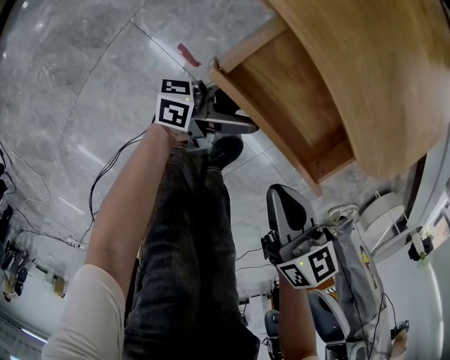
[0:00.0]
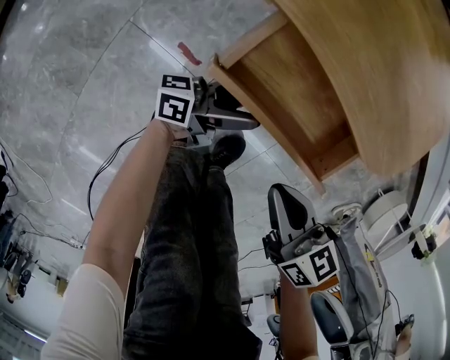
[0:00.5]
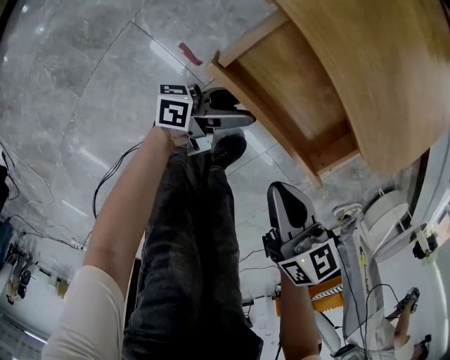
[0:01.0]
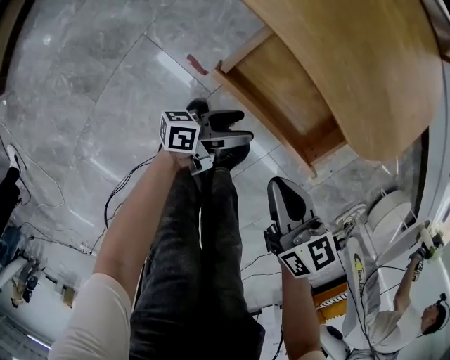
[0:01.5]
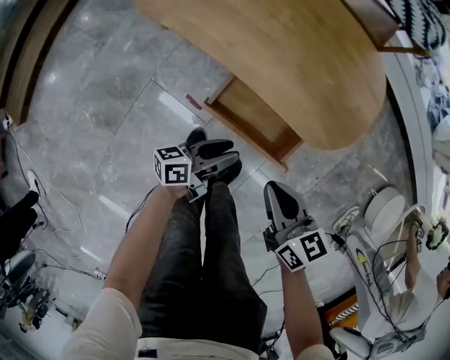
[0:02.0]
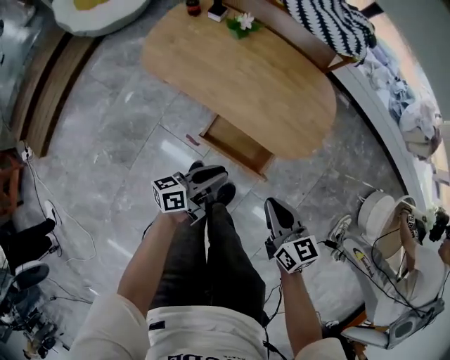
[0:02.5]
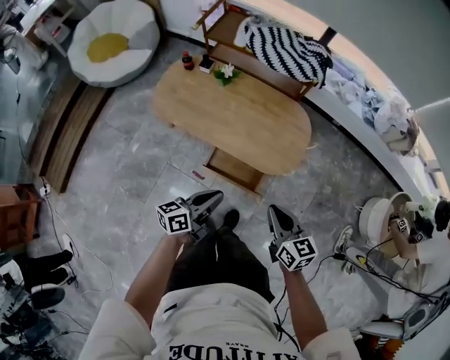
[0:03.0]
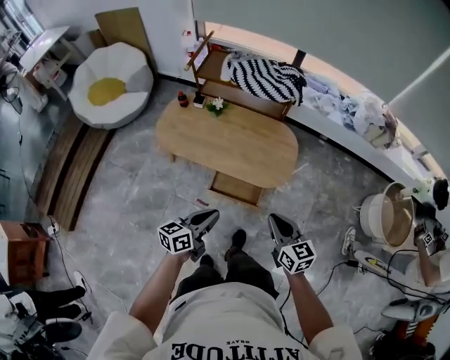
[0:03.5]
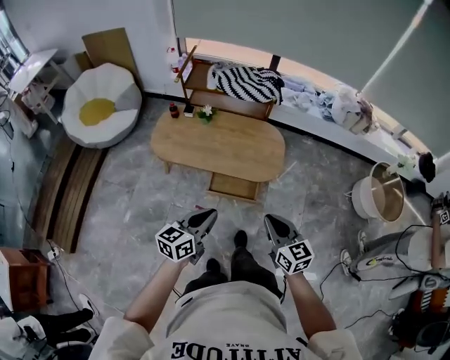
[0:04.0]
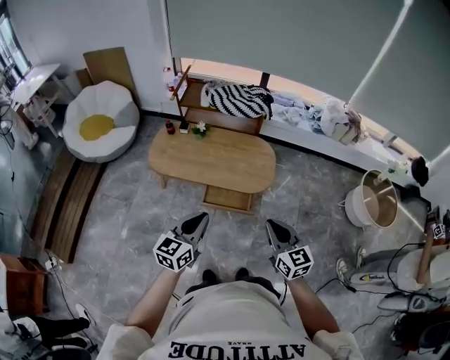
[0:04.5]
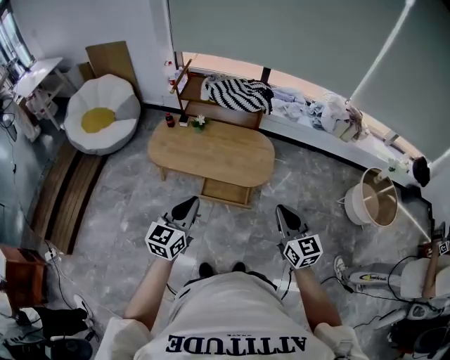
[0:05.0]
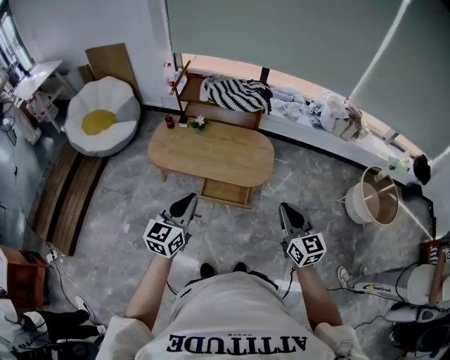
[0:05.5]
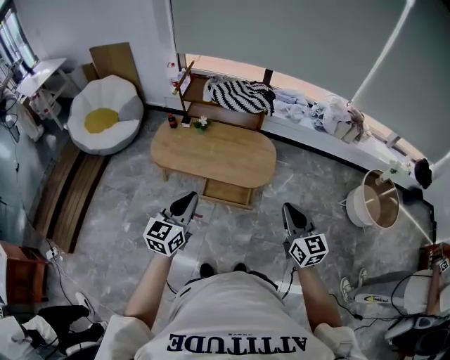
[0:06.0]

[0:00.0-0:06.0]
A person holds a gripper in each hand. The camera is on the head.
0:00.0 to 0:02.0: Both grippers travel together upward, about 20 cm. The left gripper turns by approximately 20 degrees, and closes up.
0:02.0 to 0:04.0: The right gripper moves upward and backward, roughly 40 cm, and changes its angle by some 30 degrees; the left gripper heads upward, covering roughly 50 cm, turns by approximately 40 degrees, and closes its fingers.
0:04.0 to 0:06.0: The right gripper shifts approximately 15 cm to the right and upward; the left gripper travels upward by about 10 cm, and rotates about 30 degrees.

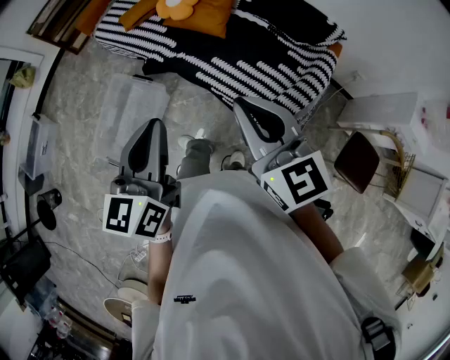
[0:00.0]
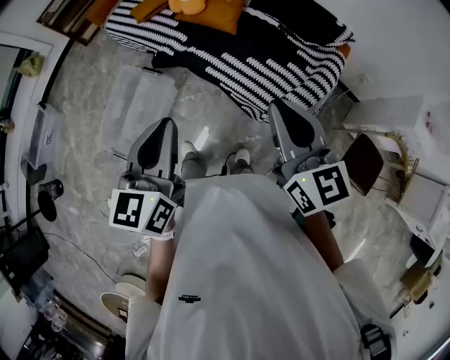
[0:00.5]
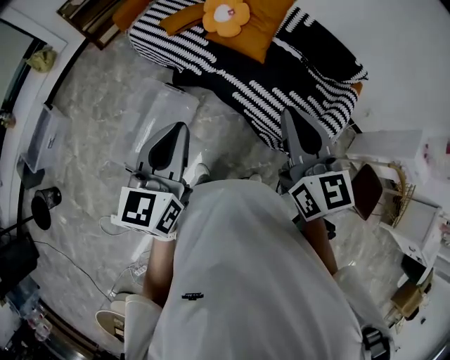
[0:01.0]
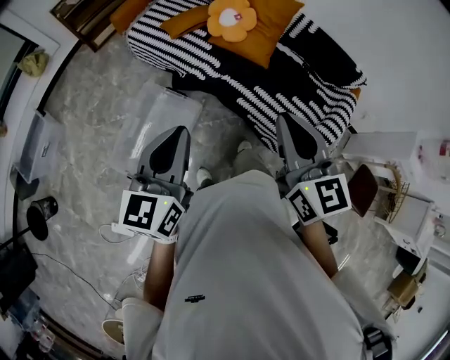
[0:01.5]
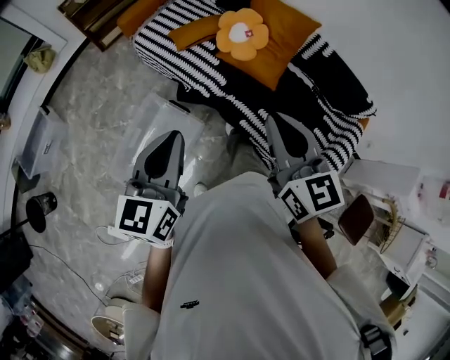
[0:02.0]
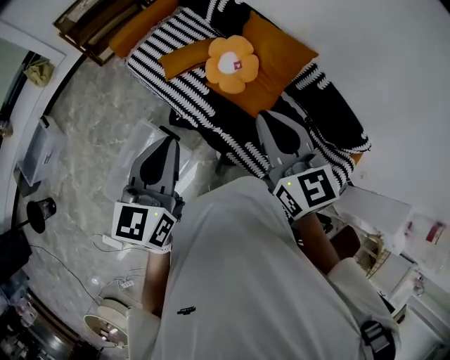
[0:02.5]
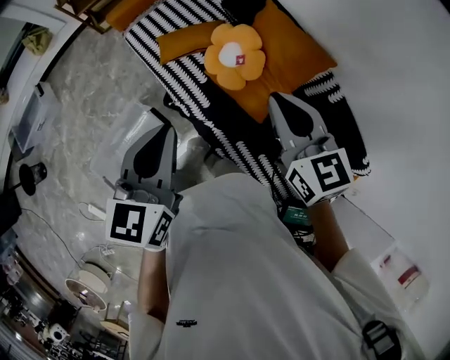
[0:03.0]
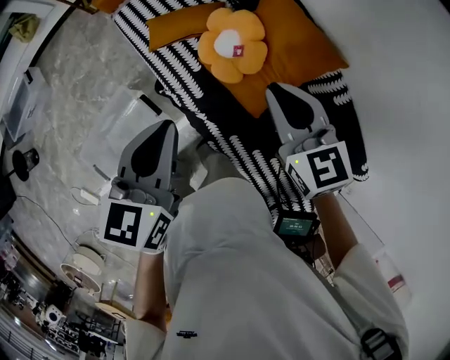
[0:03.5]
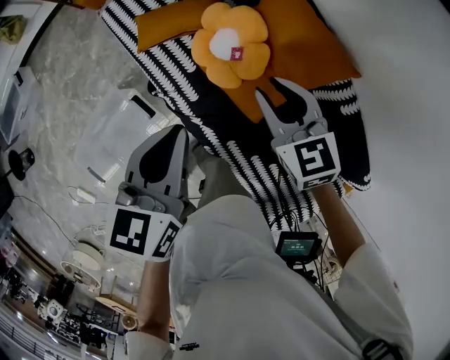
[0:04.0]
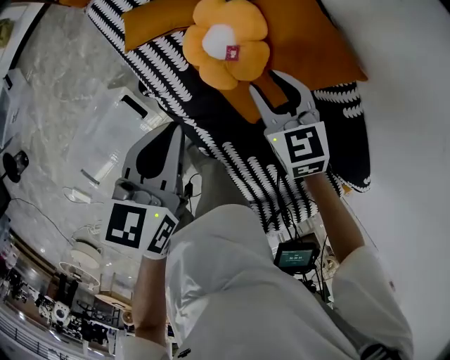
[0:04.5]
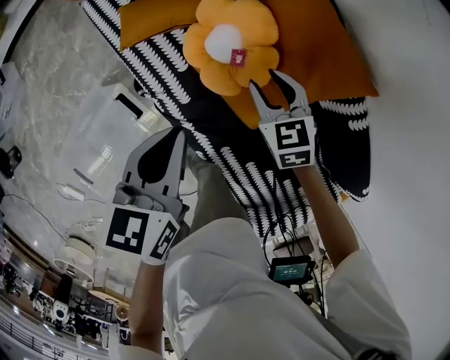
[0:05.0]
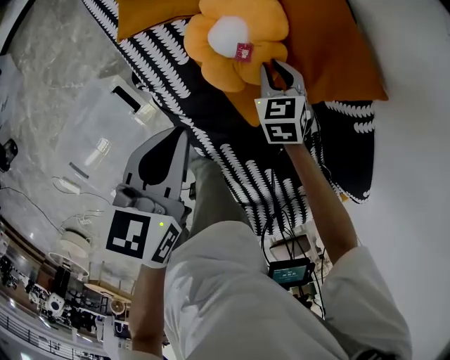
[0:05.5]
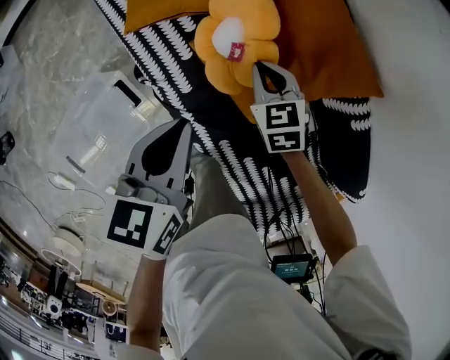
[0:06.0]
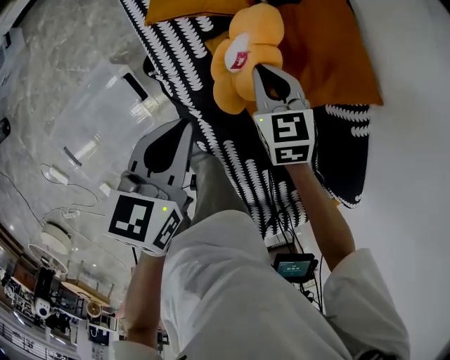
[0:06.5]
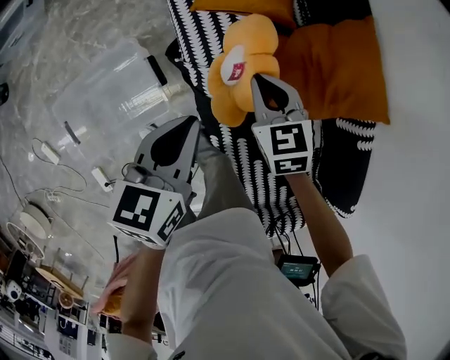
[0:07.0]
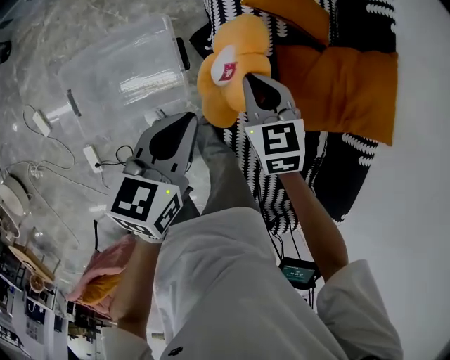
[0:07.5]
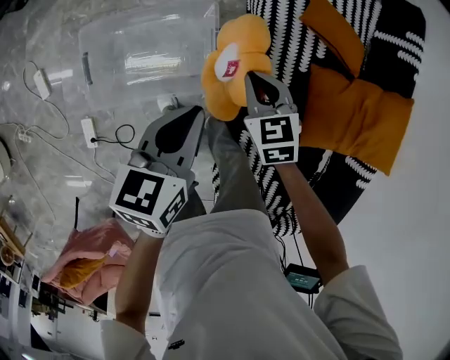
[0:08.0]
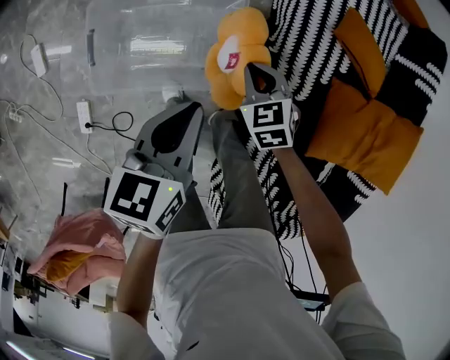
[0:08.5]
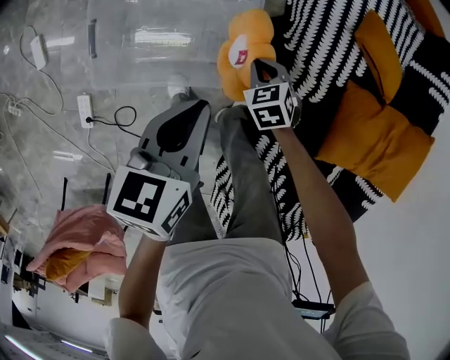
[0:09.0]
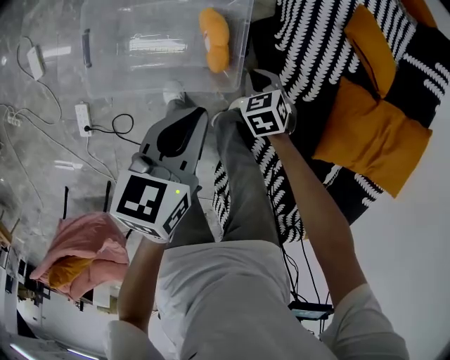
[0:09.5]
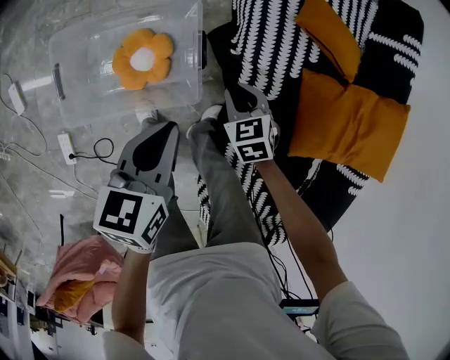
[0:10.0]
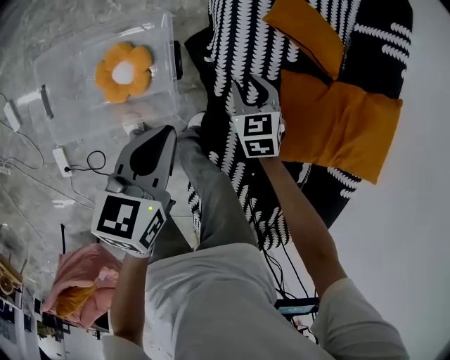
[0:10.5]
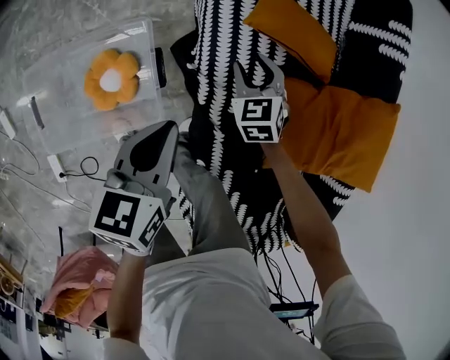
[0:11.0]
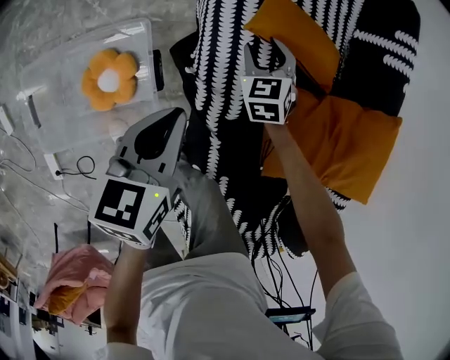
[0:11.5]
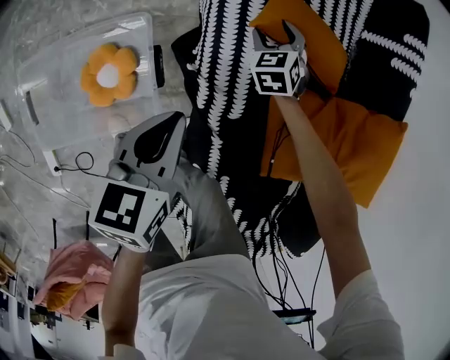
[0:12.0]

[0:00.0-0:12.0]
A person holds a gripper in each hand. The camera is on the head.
0:00.0 to 0:02.0: The left gripper goes about 30 cm to the left and forward. The right gripper moves forward and to the left, about 30 cm.
0:02.0 to 0:04.0: The two grippers travel together, forward and to the right, some 50 cm. The left gripper goes roughly 15 cm downward, and rotates approximately 20 degrees. The right gripper travels downward by about 25 cm, turns by roughly 30 degrees, and opens its fingers.
0:04.0 to 0:06.0: The right gripper heads downward, covering roughly 20 cm, and closes up, while the left gripper moves downward, about 10 cm.
0:06.0 to 0:08.0: The pair of grippers is taken roughly 50 cm. The left gripper turns by roughly 30 degrees, while the right gripper turns by roughly 40 degrees.
0:08.0 to 0:10.0: The right gripper moves downward, some 15 cm, while the left gripper goes some 10 cm downward.
0:10.0 to 0:12.0: The left gripper is displaced forward and to the right by approximately 20 cm. Meanwhile the right gripper is displaced forward and to the right by approximately 35 cm, turns by roughly 20 degrees, and opens its fingers.

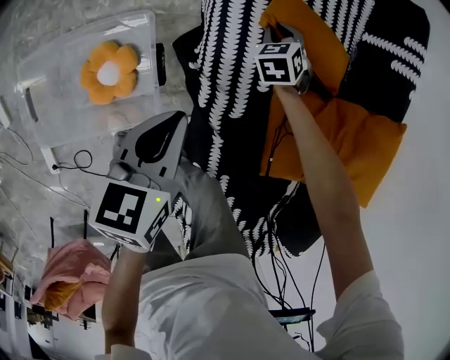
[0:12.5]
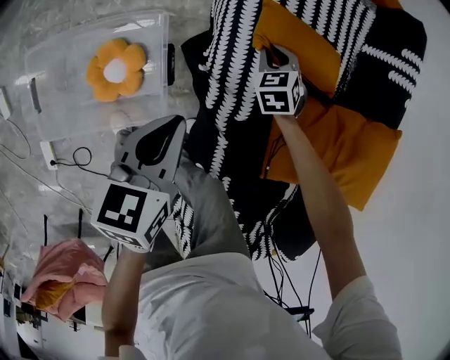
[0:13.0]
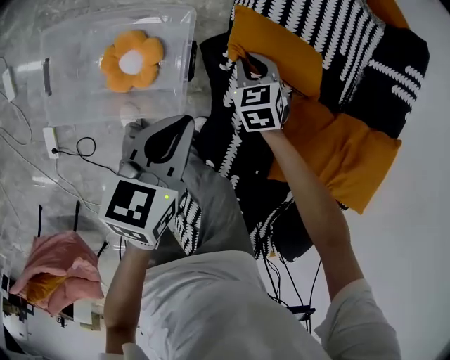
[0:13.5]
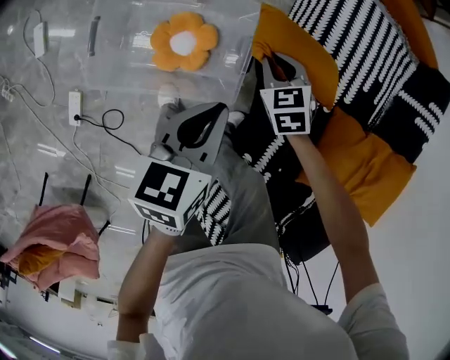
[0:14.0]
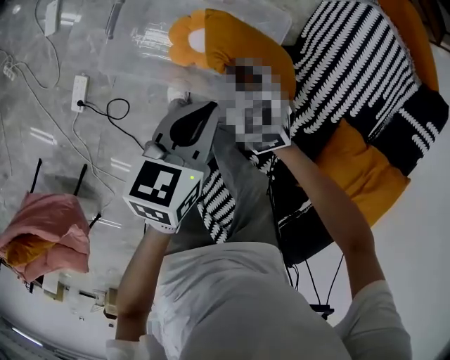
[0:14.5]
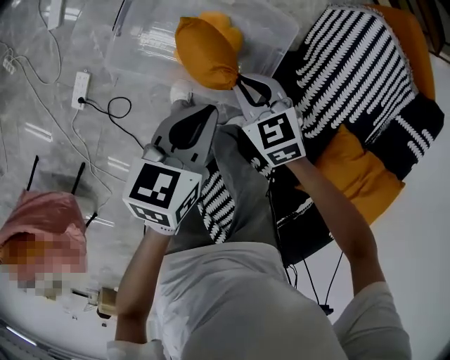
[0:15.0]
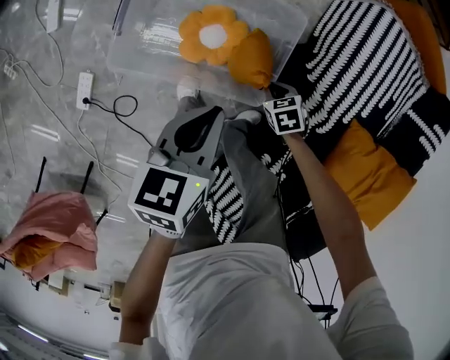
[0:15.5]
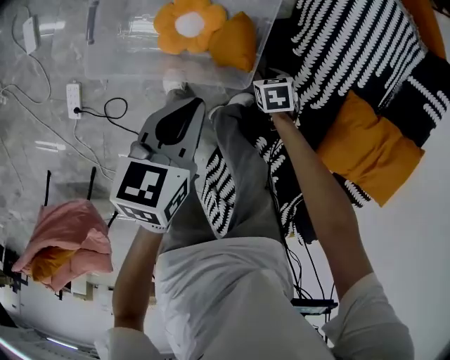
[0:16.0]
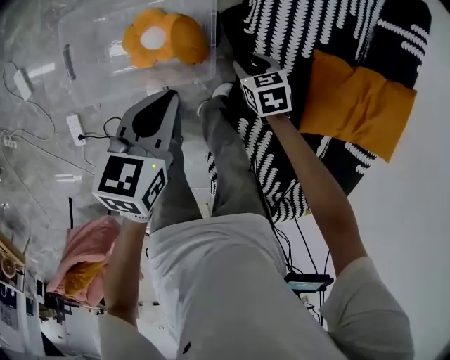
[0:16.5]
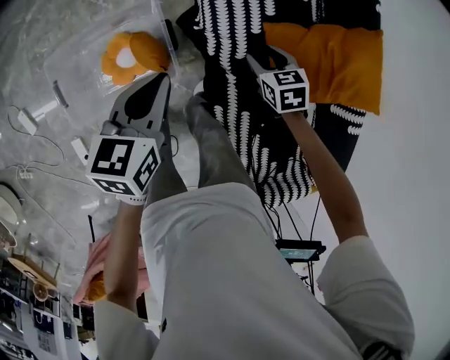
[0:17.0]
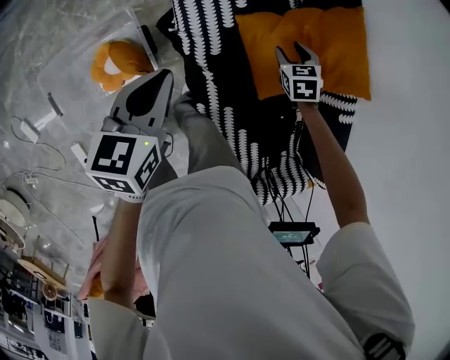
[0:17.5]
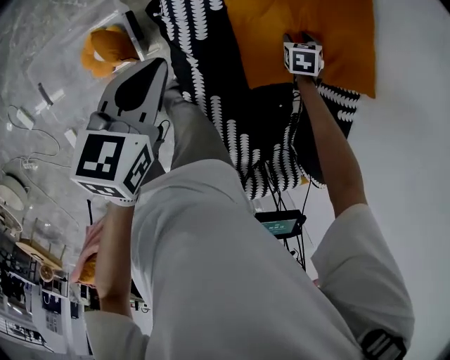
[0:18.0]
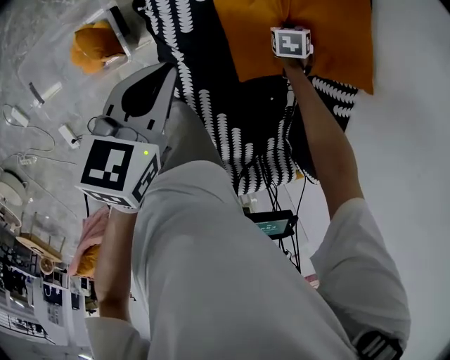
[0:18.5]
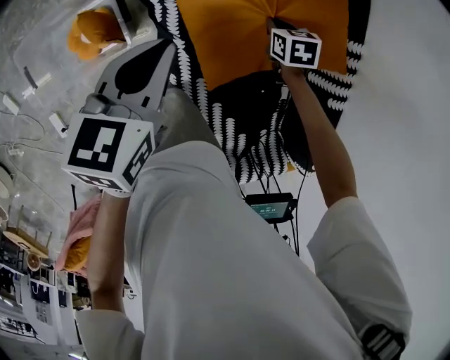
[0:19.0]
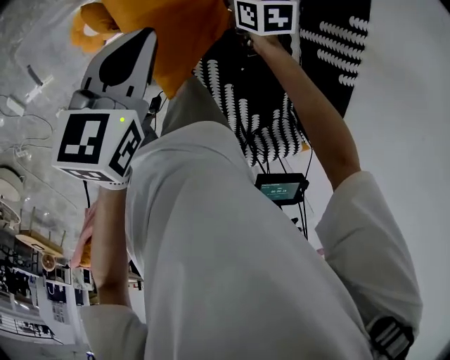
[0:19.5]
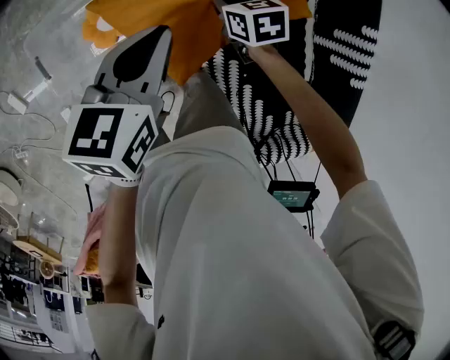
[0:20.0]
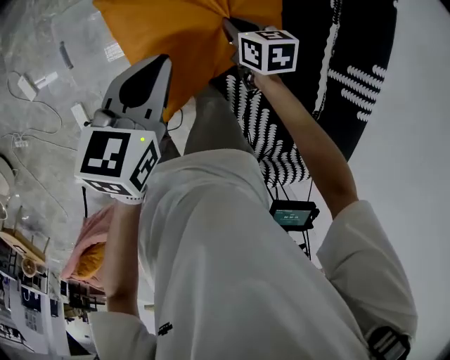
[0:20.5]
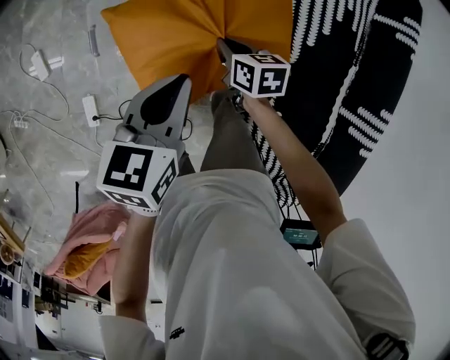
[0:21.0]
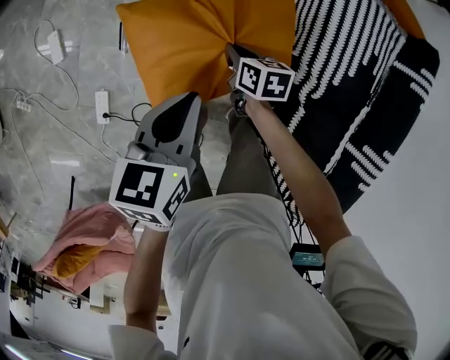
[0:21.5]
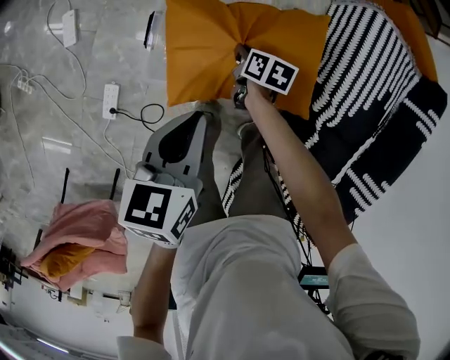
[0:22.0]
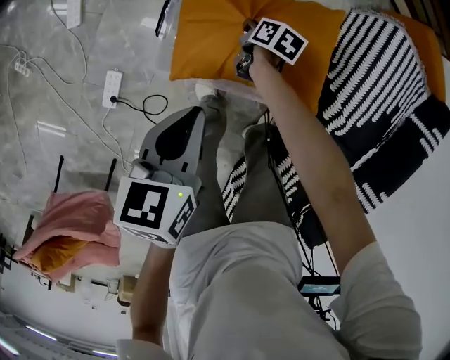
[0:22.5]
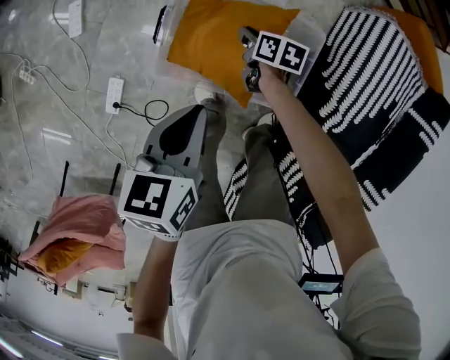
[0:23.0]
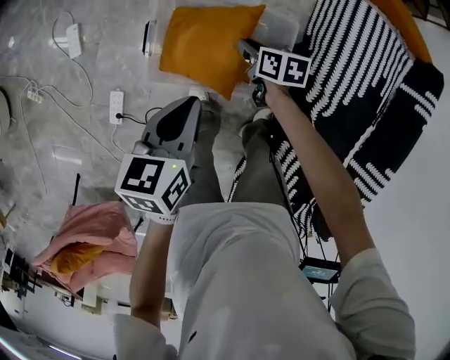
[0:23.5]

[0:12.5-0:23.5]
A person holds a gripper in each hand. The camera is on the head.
0:12.5 to 0:14.5: The left gripper changes place by some 30 cm, and changes its angle by approximately 20 degrees, while the right gripper ends up approximately 50 cm from where it was, and turns by approximately 50 degrees.
0:14.5 to 0:16.0: The right gripper shifts by approximately 25 cm, and tilts its fingers about 30 degrees downward.
0:16.0 to 0:18.0: The left gripper changes place by some 40 cm, and turns by approximately 30 degrees. Meanwhile the right gripper moves roughly 60 cm, rotates roughly 40 degrees, and opens.
0:18.0 to 0:20.0: The right gripper shifts by roughly 40 cm, changes its angle by about 30 degrees, and closes up. Meanwhile the left gripper changes place by some 15 cm.
0:20.0 to 0:21.5: The grippers both shift to the left by approximately 35 cm. The left gripper rotates about 30 degrees.
0:21.5 to 0:23.5: The left gripper is displaced to the left by some 5 cm. The right gripper goes approximately 5 cm forward, and reaches about 15 cm downward, then returns.
